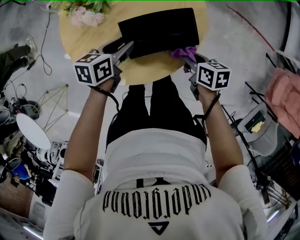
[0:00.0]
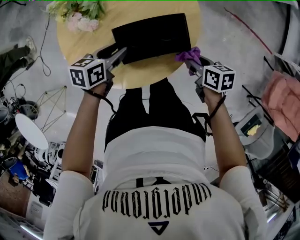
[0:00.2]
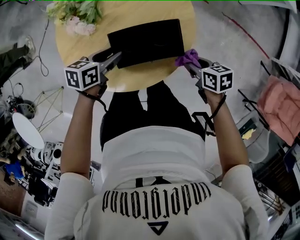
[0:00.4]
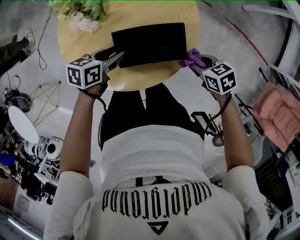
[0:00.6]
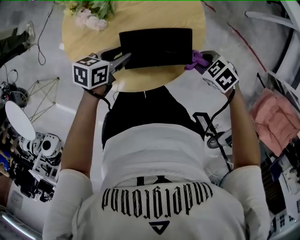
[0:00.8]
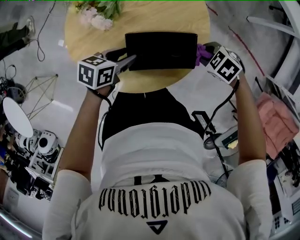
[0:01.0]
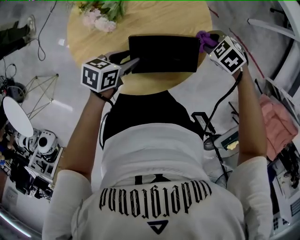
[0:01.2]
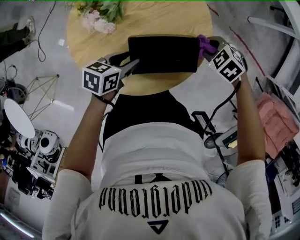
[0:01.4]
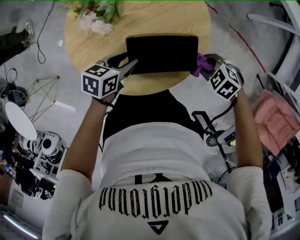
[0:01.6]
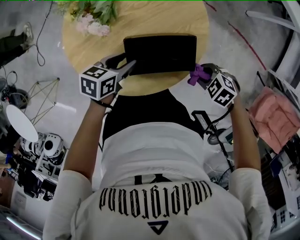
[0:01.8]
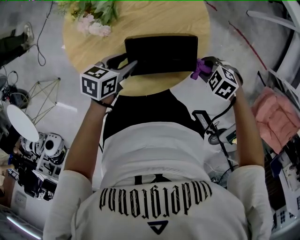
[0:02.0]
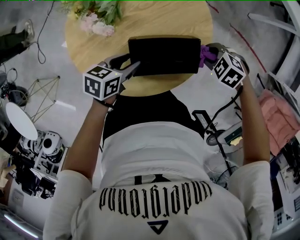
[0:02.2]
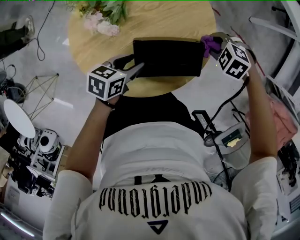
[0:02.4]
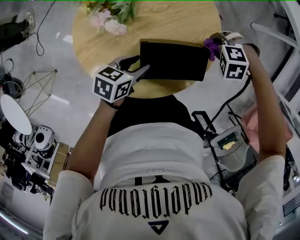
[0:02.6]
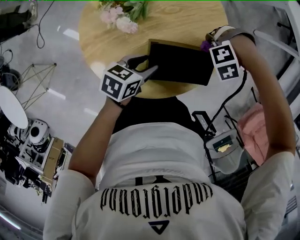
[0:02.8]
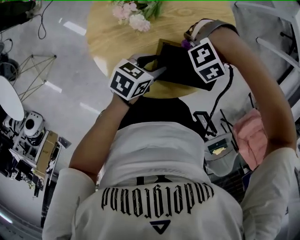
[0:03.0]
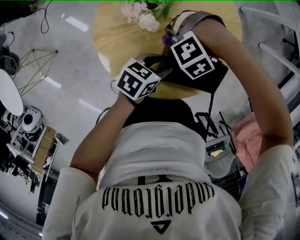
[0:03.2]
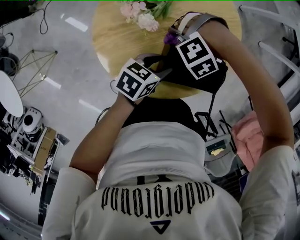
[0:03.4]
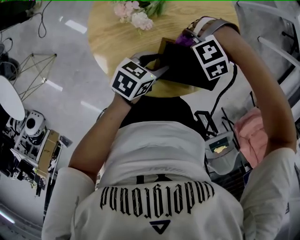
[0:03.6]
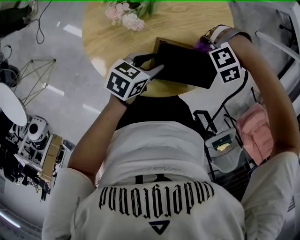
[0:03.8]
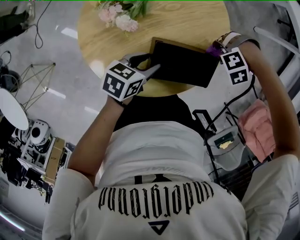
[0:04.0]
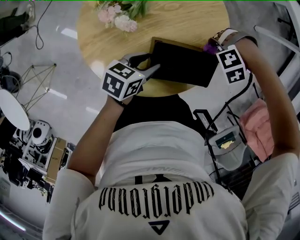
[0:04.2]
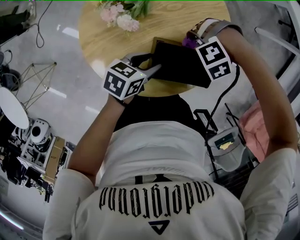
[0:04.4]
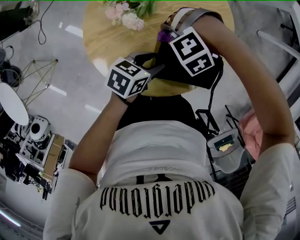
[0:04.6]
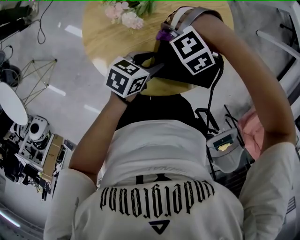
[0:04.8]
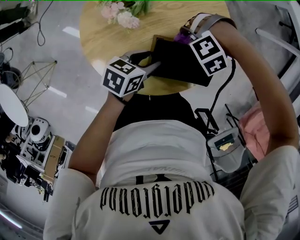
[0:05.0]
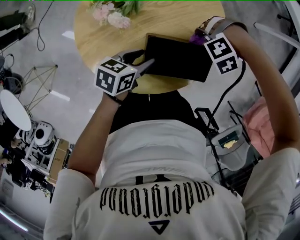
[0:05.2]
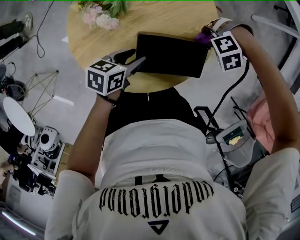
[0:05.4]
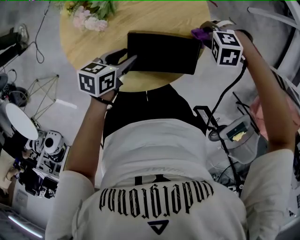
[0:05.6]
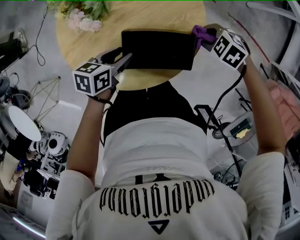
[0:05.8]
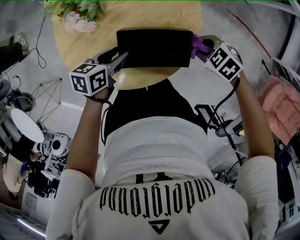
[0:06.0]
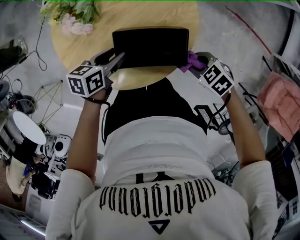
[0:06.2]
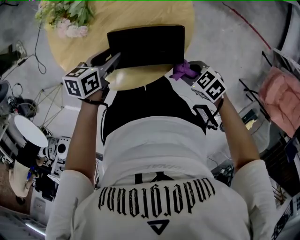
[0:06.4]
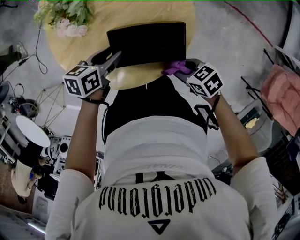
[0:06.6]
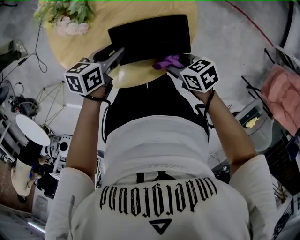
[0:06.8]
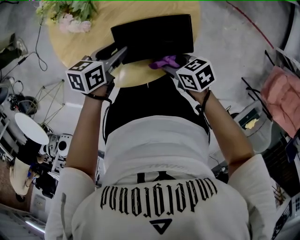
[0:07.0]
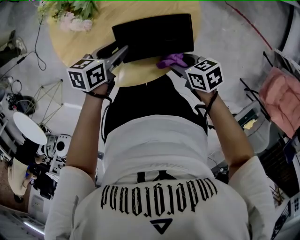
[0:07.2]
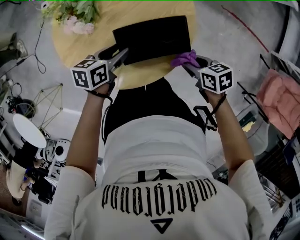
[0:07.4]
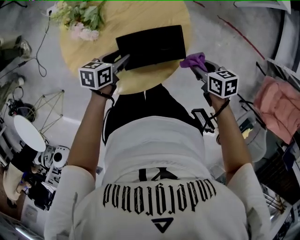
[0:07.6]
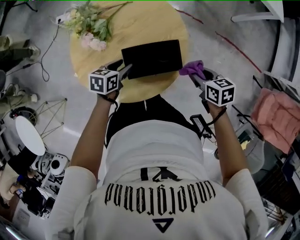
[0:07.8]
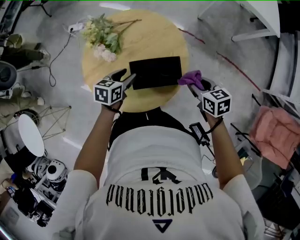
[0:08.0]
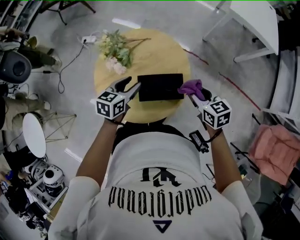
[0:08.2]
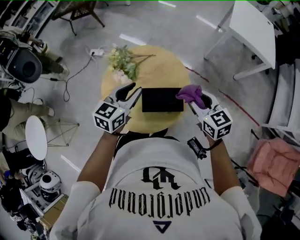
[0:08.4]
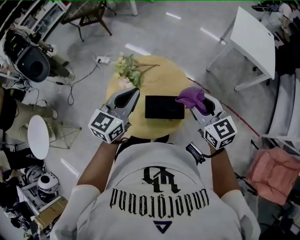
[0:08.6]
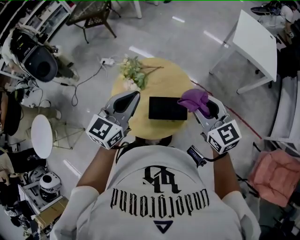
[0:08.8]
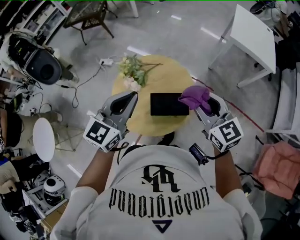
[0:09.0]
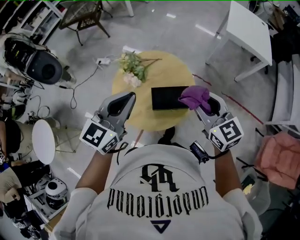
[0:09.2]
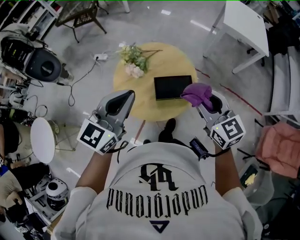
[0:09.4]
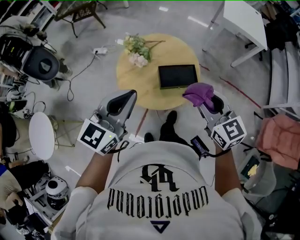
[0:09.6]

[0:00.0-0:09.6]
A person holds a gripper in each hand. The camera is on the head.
0:00.0 to 0:01.6: The right gripper rolls counterclockwise, seen from behind, by some 70 degrees.
0:01.6 to 0:03.2: The right gripper changes place by some 30 cm, and twists some 80 degrees counterclockwise, seen from behind.
0:04.8 to 0:06.4: The right gripper ends up approximately 30 cm from where it was, and rotates around the line of its fingers by approximately 100 degrees, clockwise from behind.
0:06.4 to 0:08.0: The left gripper is displaced upward by about 5 cm; the right gripper goes roughly 15 cm upward, and rotates roughly 30 degrees.
0:08.0 to 0:09.6: The right gripper heads upward, to the left and backward, covering some 40 cm, and swivels roughly 40 degrees, while the left gripper heads upward and backward, covering approximately 40 cm, tips its fingers upward by about 40 degrees, and closes up.

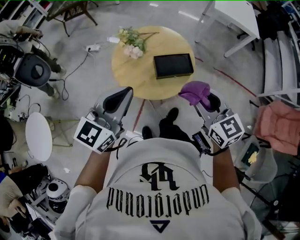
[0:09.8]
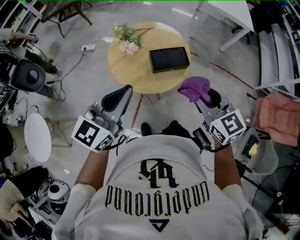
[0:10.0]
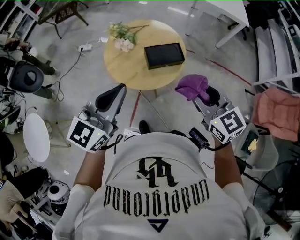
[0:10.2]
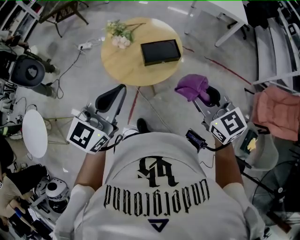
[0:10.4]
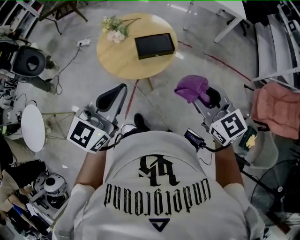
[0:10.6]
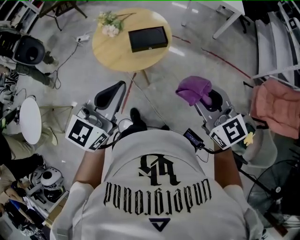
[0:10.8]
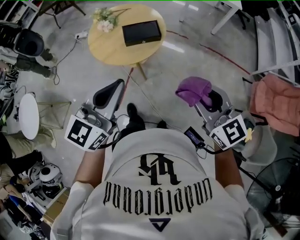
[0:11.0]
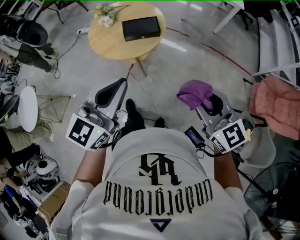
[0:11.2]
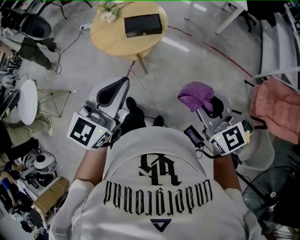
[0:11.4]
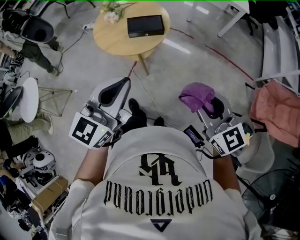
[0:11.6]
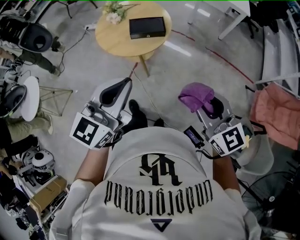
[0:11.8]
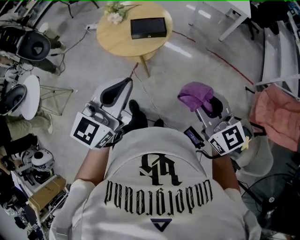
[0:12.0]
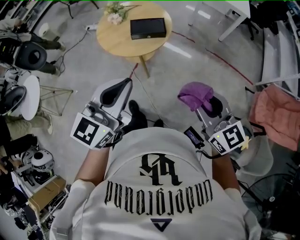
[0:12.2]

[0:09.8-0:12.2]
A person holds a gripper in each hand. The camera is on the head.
0:09.8 to 0:11.0: The left gripper travels to the right and backward by approximately 30 cm. Meanwhile the right gripper is displaced backward and to the right by some 30 cm.
0:11.0 to 0:12.2: Both grippers move backward, approximately 5 cm.

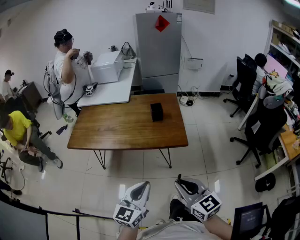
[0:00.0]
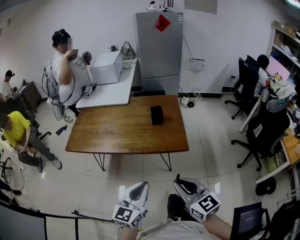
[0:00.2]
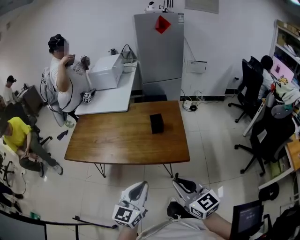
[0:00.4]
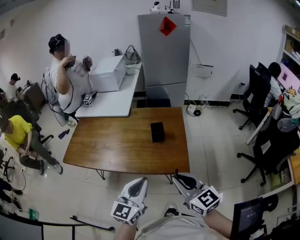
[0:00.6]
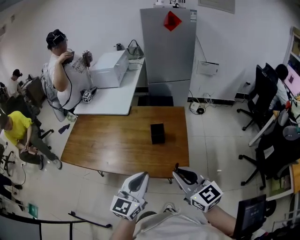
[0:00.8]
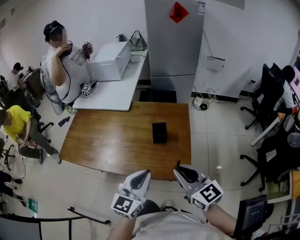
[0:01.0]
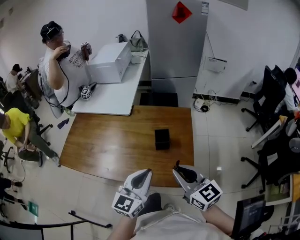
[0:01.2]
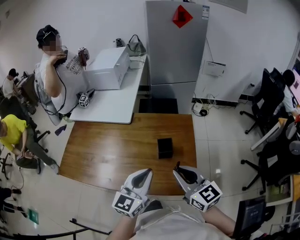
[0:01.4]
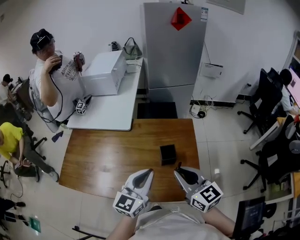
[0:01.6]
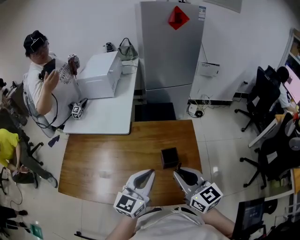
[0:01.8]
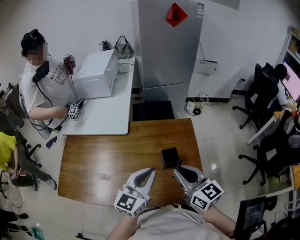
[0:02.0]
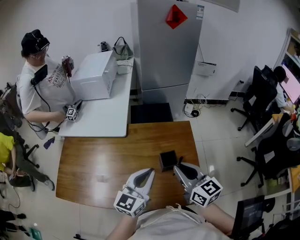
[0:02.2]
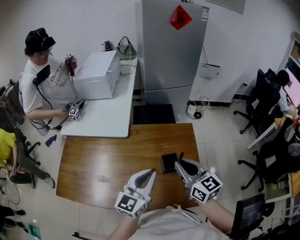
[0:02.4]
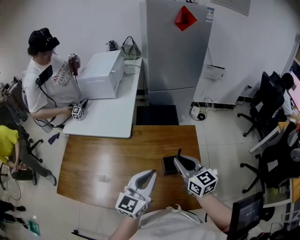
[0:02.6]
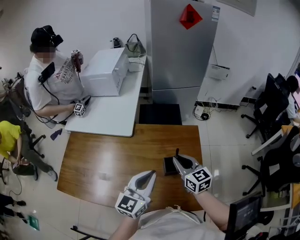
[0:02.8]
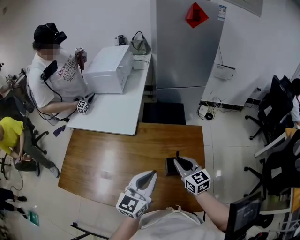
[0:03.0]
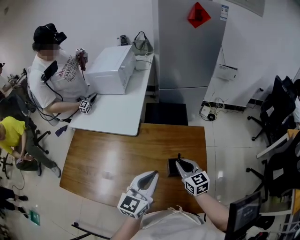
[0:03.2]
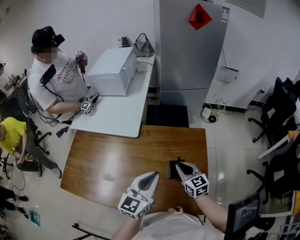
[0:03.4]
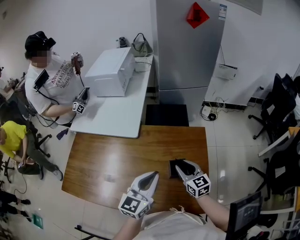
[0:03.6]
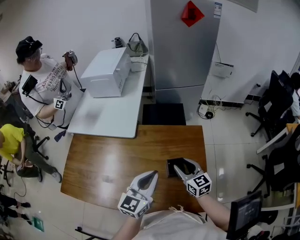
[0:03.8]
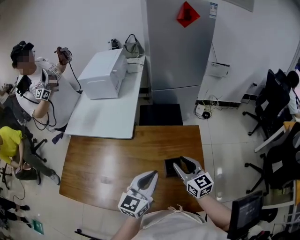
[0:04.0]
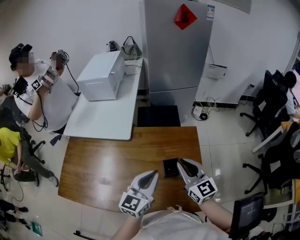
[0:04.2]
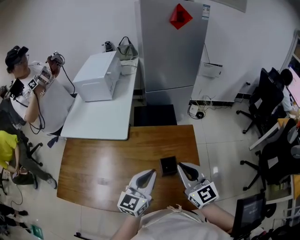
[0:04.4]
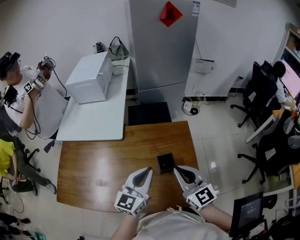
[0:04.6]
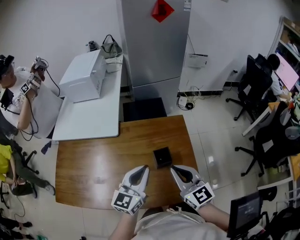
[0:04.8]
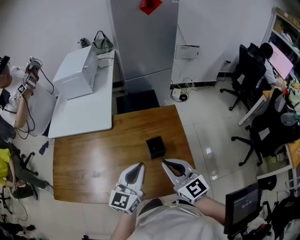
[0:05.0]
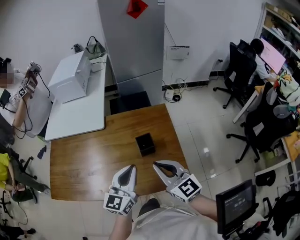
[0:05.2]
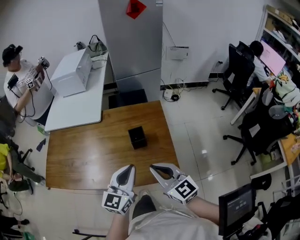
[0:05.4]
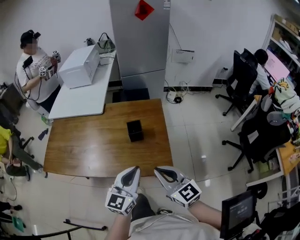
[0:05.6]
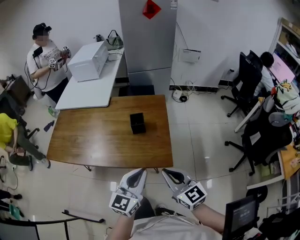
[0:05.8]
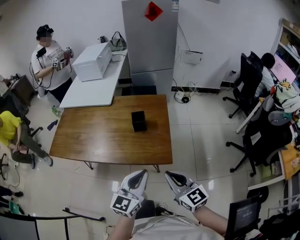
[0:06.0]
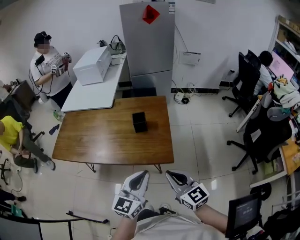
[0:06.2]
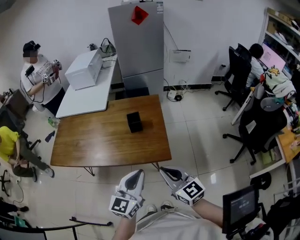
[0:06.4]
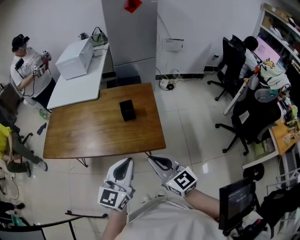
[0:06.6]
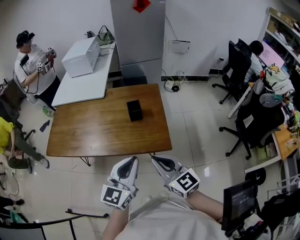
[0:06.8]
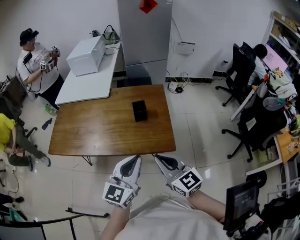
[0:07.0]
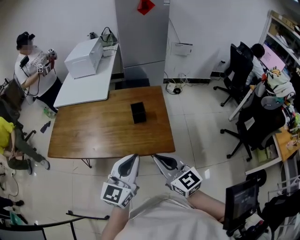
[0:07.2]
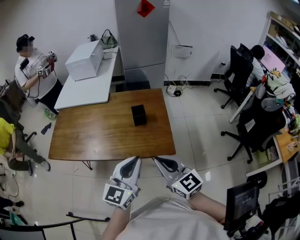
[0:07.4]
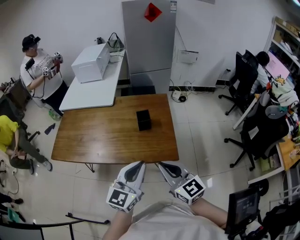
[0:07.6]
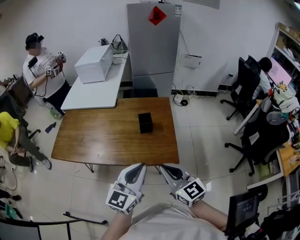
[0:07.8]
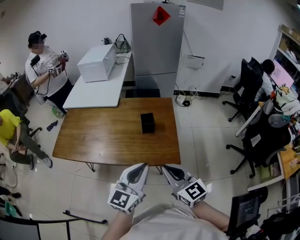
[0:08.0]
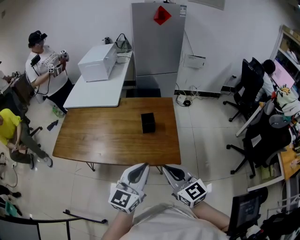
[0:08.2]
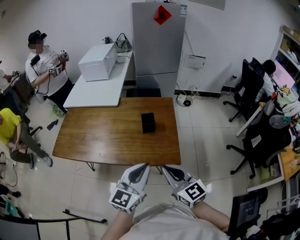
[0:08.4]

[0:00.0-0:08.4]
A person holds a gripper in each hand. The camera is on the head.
0:00.0 to 0:01.4: The grippers both shift forward by some 40 cm.
0:01.4 to 0:02.8: The right gripper shifts about 20 cm forward and downward. The left gripper goes about 10 cm forward.
0:02.8 to 0:04.2: The right gripper heads upward, covering about 5 cm, and opens and closes again.
0:04.2 to 0:05.6: The right gripper is displaced backward by about 25 cm. Meanwhile the left gripper is displaced backward and to the right by roughly 25 cm.
0:05.6 to 0:07.0: Both grippers travel together backward, roughly 10 cm.
0:07.0 to 0:08.4: There are only small adjustments of the grippers.

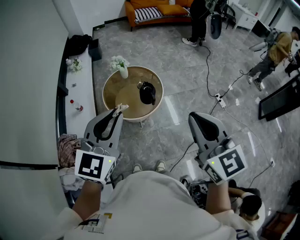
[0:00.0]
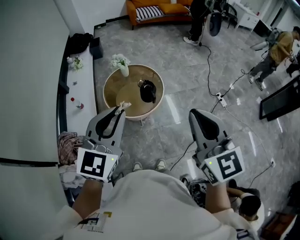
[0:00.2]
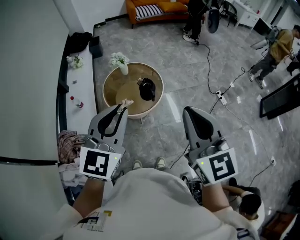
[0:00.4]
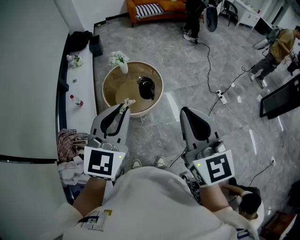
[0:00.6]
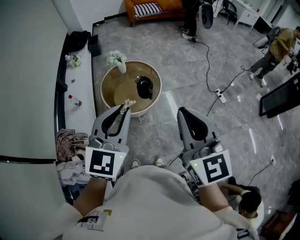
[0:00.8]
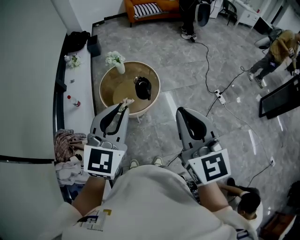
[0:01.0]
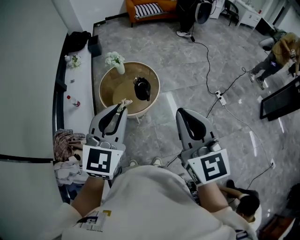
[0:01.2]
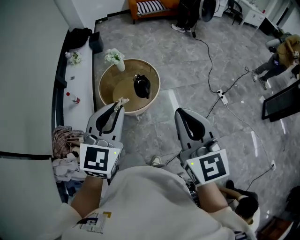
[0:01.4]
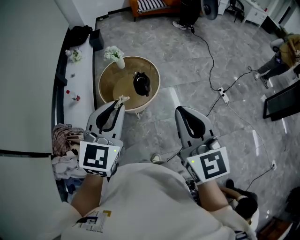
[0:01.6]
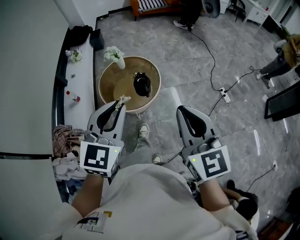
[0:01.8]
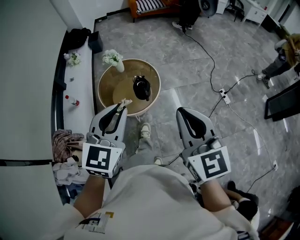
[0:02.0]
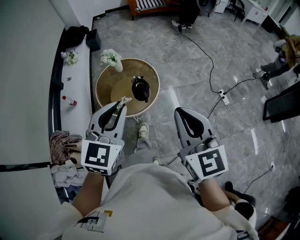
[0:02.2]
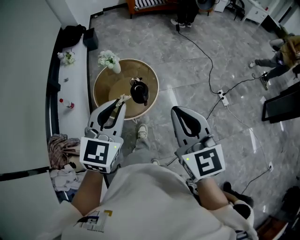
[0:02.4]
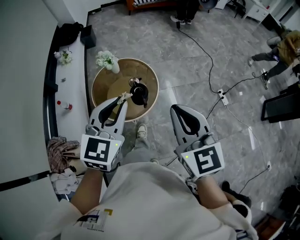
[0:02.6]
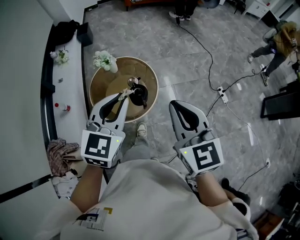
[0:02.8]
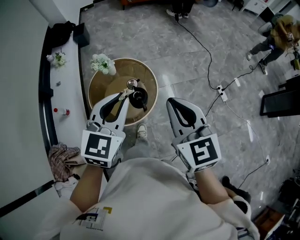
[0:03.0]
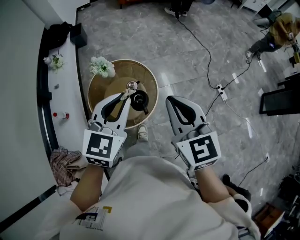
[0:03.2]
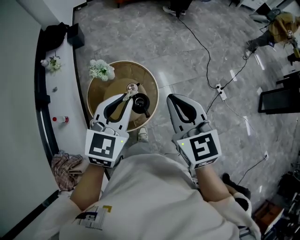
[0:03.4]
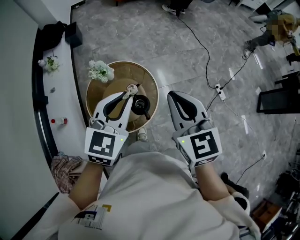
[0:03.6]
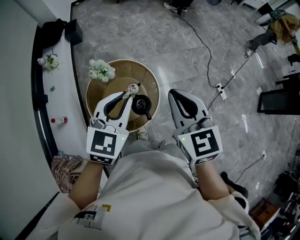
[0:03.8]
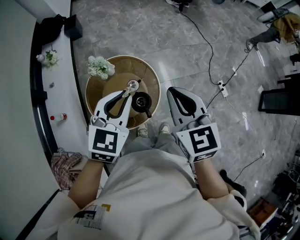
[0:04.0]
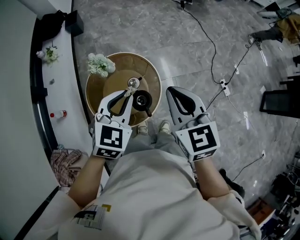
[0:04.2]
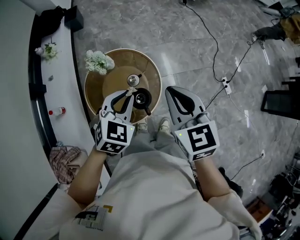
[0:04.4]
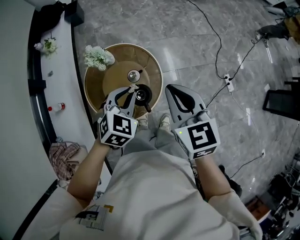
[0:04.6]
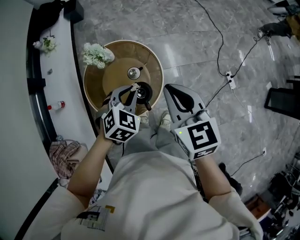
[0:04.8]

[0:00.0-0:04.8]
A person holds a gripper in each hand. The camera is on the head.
0:00.0 to 0:01.6: The left gripper travels to the right by approximately 10 cm. Meanwhile the right gripper heads to the right, covering about 5 cm.
0:01.6 to 0:03.2: The grippers both shift forward by roughly 30 cm.
0:03.2 to 0:04.8: The right gripper travels forward and downward by approximately 20 cm, while the left gripper heads downward and forward, covering roughly 25 cm, and rotates some 30 degrees.
